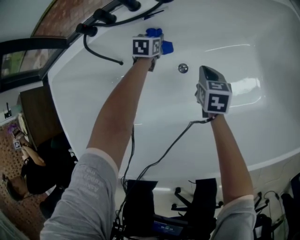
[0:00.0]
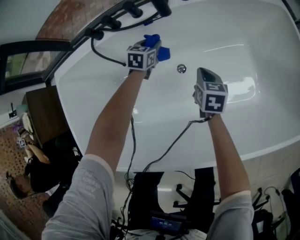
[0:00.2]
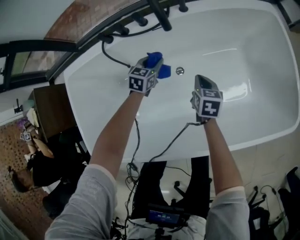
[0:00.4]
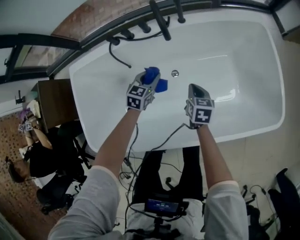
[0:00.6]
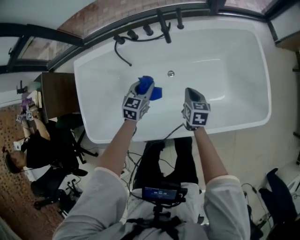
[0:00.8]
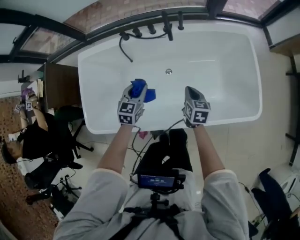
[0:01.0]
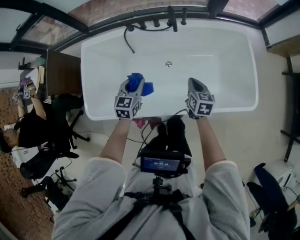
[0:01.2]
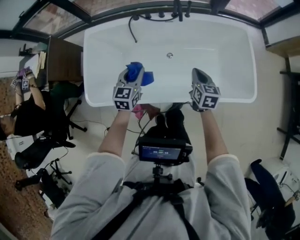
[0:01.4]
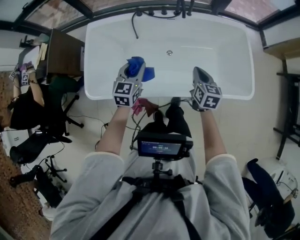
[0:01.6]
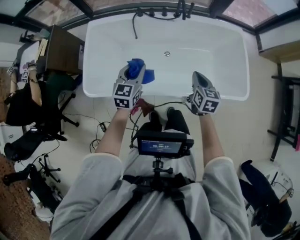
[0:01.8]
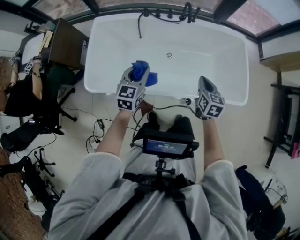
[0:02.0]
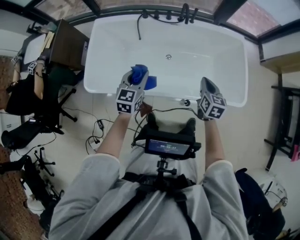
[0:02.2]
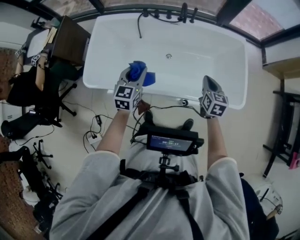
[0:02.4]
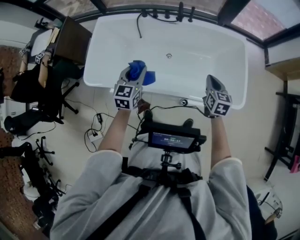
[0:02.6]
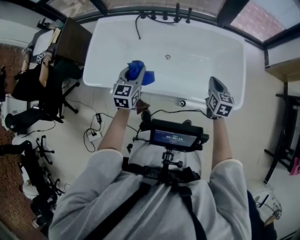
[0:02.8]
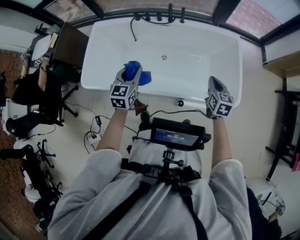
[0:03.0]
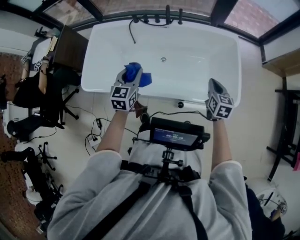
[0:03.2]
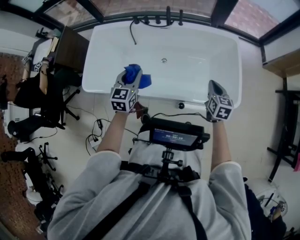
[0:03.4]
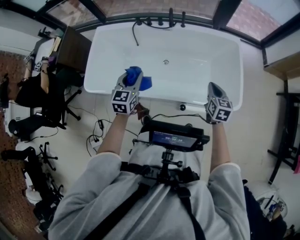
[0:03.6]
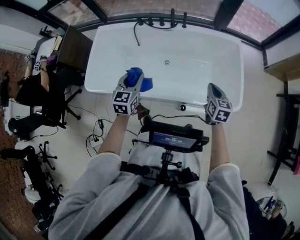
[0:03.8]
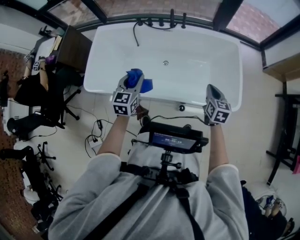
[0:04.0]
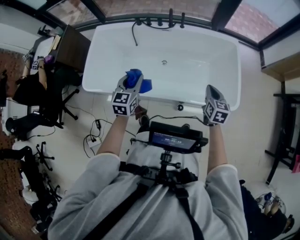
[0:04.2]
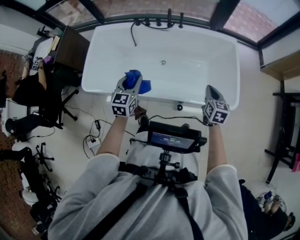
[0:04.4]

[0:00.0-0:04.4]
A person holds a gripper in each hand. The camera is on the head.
0:00.0 to 0:01.4: Both grippers move upward and backward, about 60 cm. The left gripper swivels approximately 30 degrees.
0:01.4 to 0:03.0: The left gripper travels to the right, backward and upward by some 20 cm. The right gripper travels to the right by approximately 20 cm.
0:03.0 to 0:04.4: The grippers move only a little.

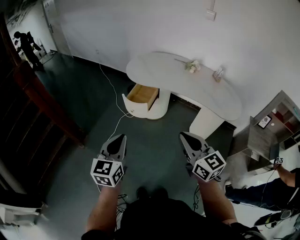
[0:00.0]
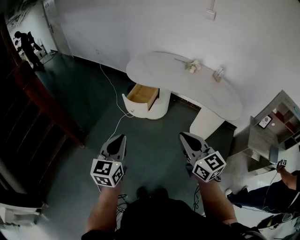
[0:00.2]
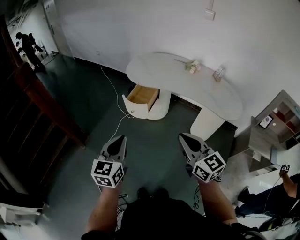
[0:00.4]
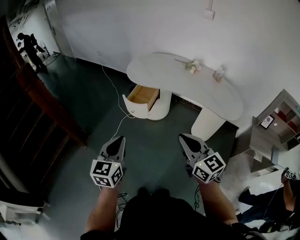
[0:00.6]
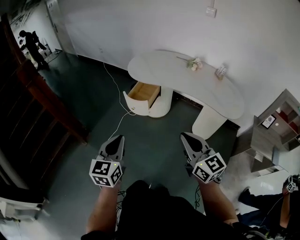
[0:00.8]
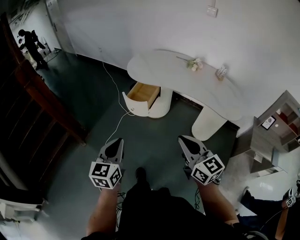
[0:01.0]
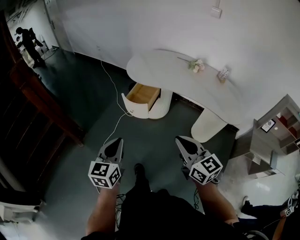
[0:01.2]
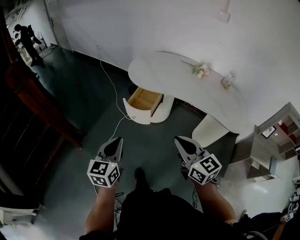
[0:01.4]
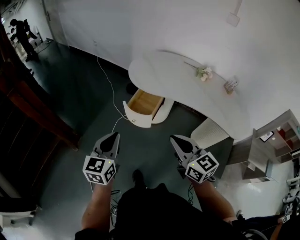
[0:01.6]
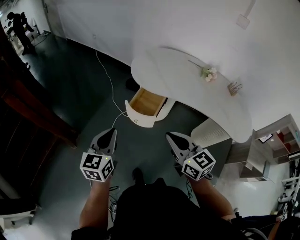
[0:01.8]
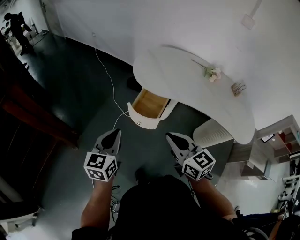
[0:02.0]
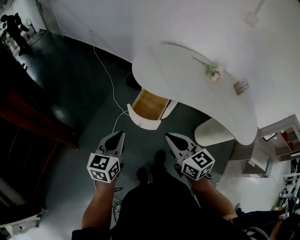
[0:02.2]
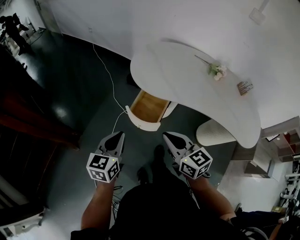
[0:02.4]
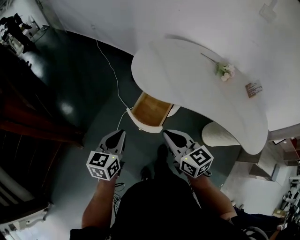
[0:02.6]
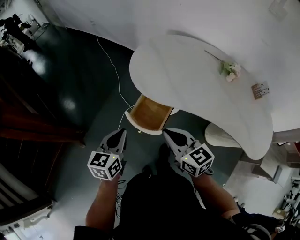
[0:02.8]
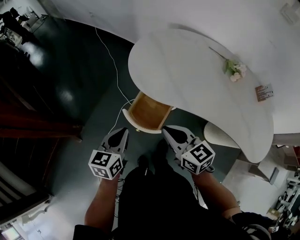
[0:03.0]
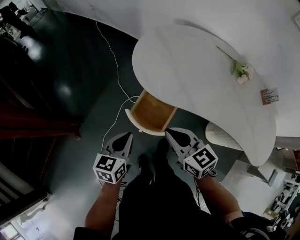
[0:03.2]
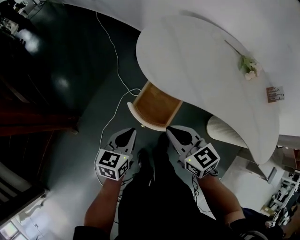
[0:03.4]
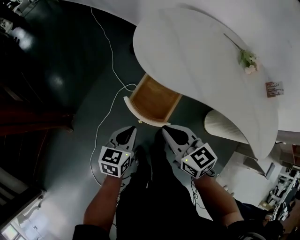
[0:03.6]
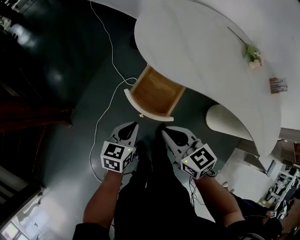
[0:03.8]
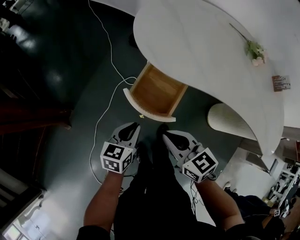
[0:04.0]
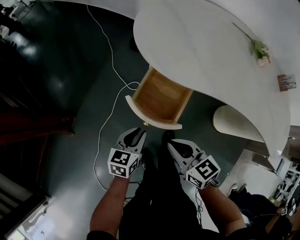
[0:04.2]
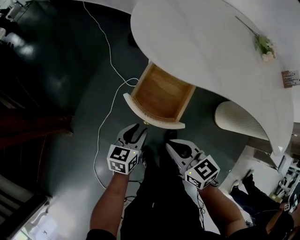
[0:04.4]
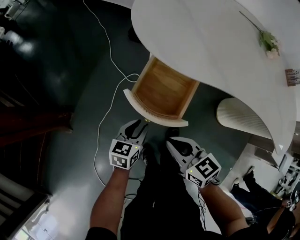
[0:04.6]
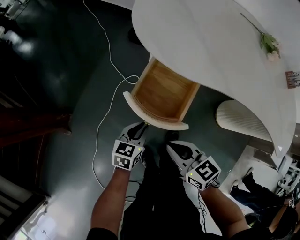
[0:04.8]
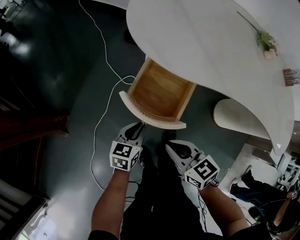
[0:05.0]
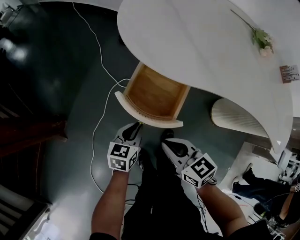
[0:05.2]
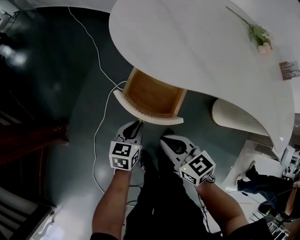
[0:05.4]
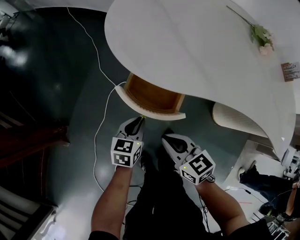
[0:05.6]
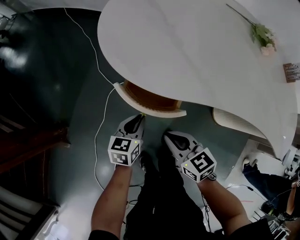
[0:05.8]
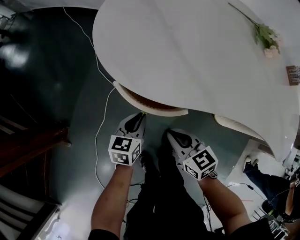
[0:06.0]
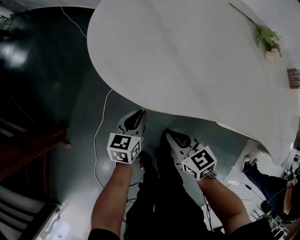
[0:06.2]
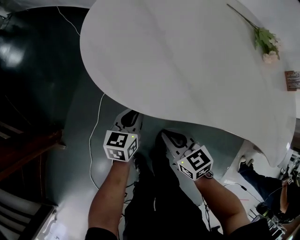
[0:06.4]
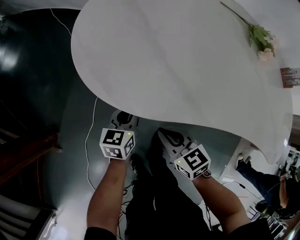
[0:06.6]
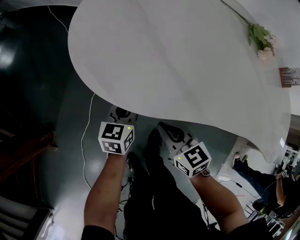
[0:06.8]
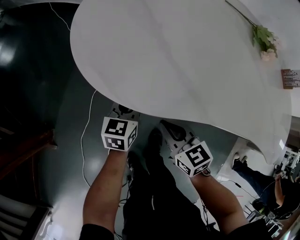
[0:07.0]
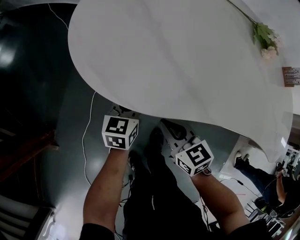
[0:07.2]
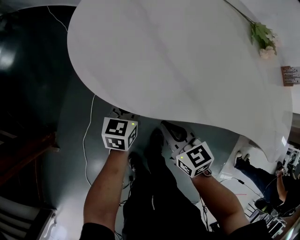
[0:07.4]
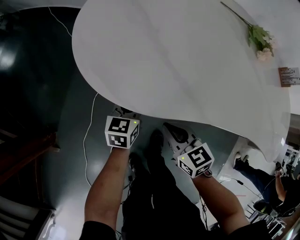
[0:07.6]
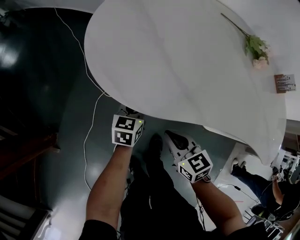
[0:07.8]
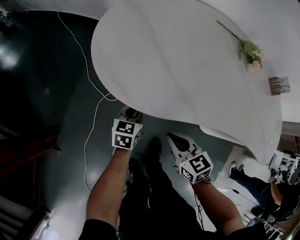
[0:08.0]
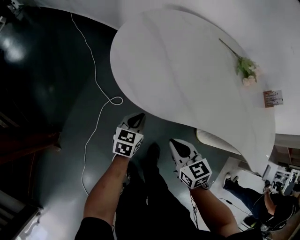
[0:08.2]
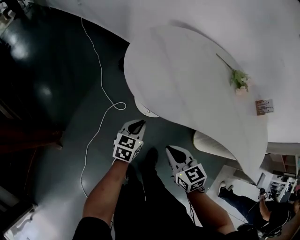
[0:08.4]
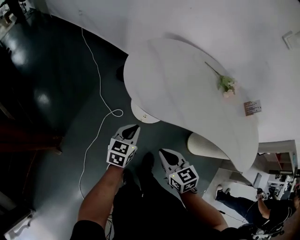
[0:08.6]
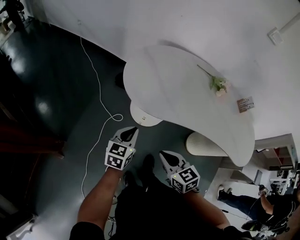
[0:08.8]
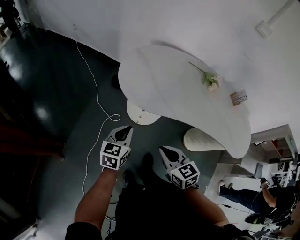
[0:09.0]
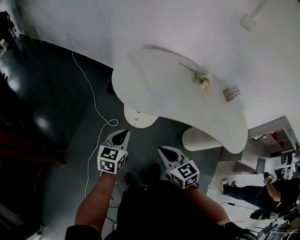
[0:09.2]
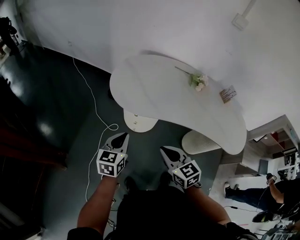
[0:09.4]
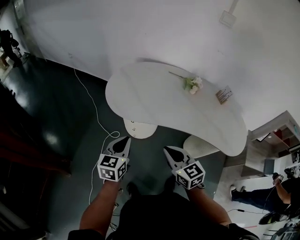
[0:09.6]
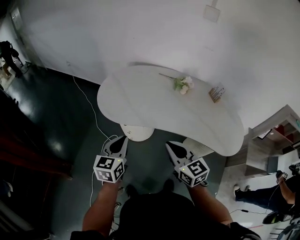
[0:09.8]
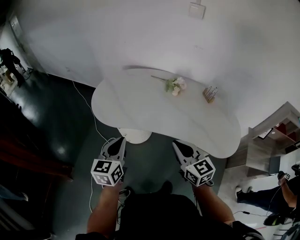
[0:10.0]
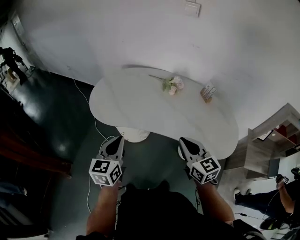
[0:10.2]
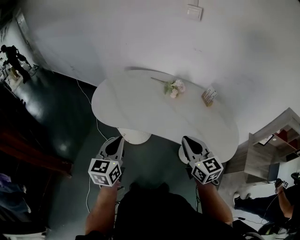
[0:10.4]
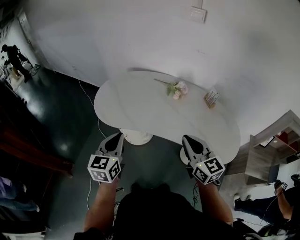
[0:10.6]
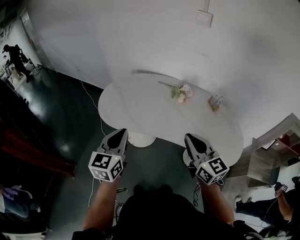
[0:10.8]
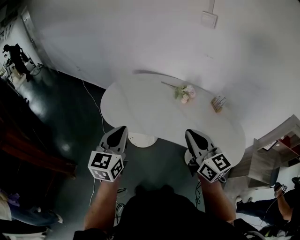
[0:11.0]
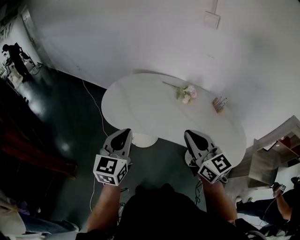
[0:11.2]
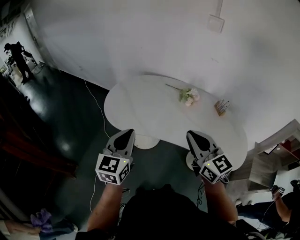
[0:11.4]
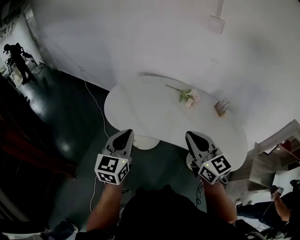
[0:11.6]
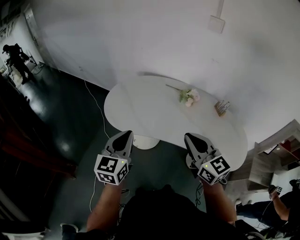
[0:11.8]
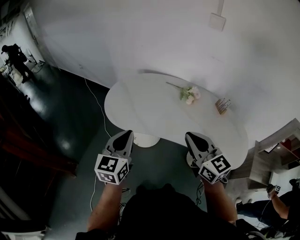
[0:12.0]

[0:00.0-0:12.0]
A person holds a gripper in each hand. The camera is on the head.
0:00.0 to 0:01.6: Both grippers travel together forward, some 20 cm.
0:01.6 to 0:03.0: Both grippers travel together forward and downward, approximately 30 cm.
0:03.0 to 0:04.4: Both grippers move downward, roughly 25 cm. The left gripper opens its fingers.
0:04.4 to 0:06.0: The right gripper shifts roughly 15 cm forward, to the right and downward. Meanwhile the left gripper travels forward and to the right by roughly 15 cm, and closes its fingers.
0:06.0 to 0:07.6: The left gripper goes approximately 10 cm forward and to the right. Meanwhile the right gripper moves forward, some 5 cm.
0:07.6 to 0:09.0: The grippers both shift upward and backward by approximately 30 cm.
0:09.0 to 0:10.4: The two grippers go about 35 cm to the right and upward. The right gripper rotates roughly 30 degrees.
0:10.4 to 0:12.0: The right gripper goes about 10 cm to the left and upward. The left gripper goes approximately 5 cm to the left.

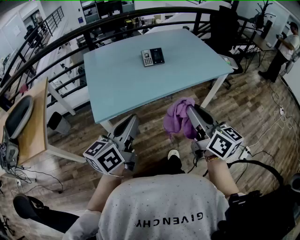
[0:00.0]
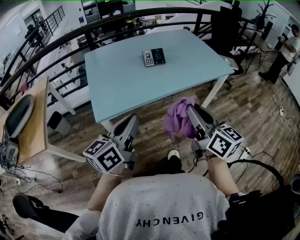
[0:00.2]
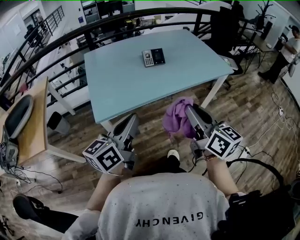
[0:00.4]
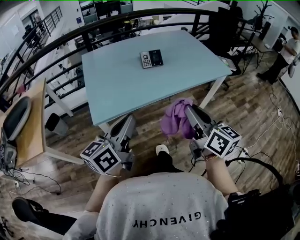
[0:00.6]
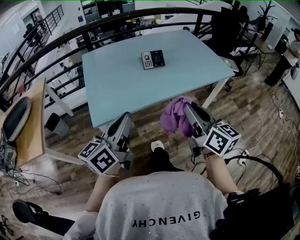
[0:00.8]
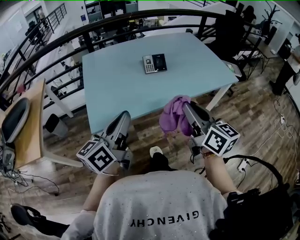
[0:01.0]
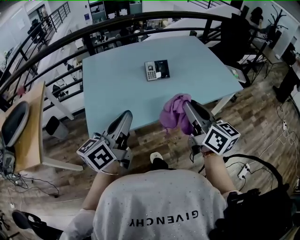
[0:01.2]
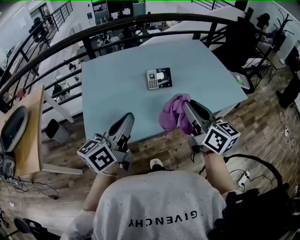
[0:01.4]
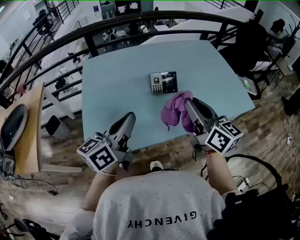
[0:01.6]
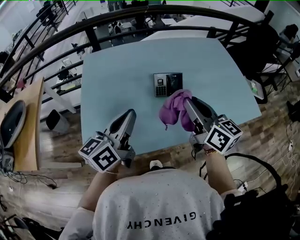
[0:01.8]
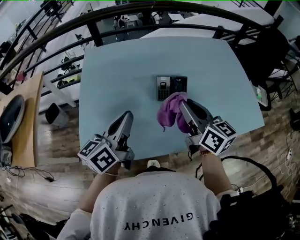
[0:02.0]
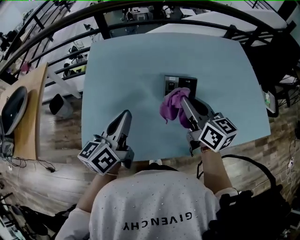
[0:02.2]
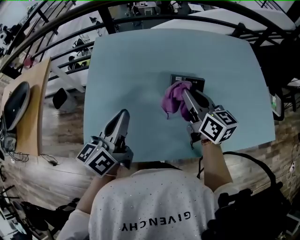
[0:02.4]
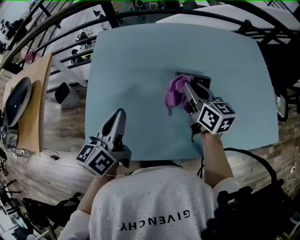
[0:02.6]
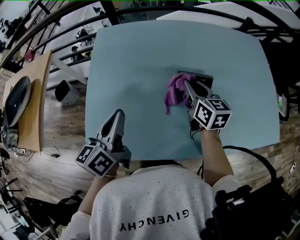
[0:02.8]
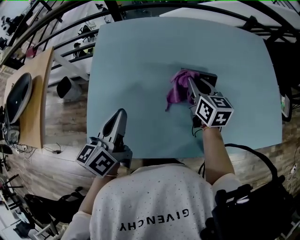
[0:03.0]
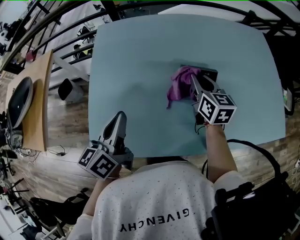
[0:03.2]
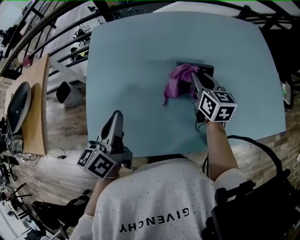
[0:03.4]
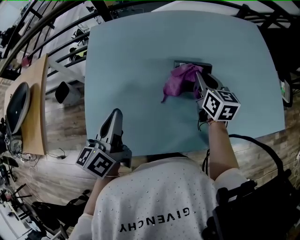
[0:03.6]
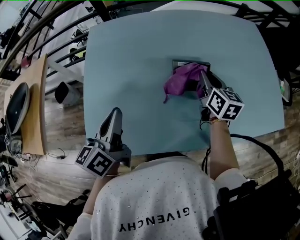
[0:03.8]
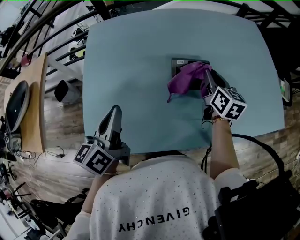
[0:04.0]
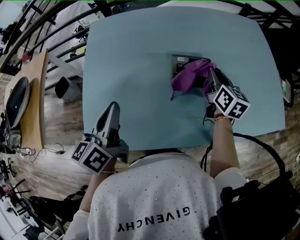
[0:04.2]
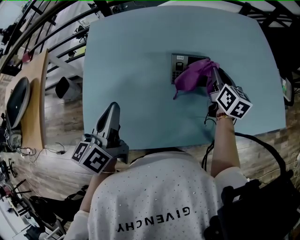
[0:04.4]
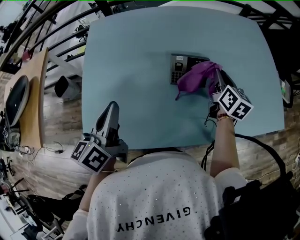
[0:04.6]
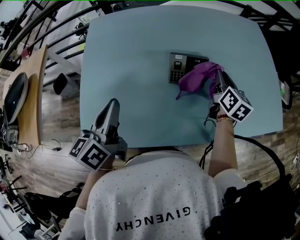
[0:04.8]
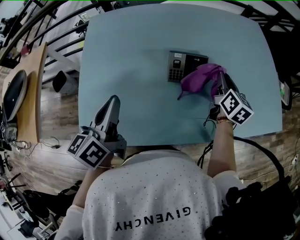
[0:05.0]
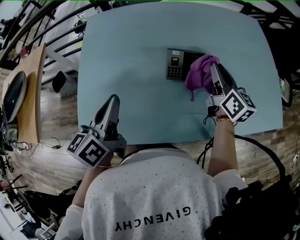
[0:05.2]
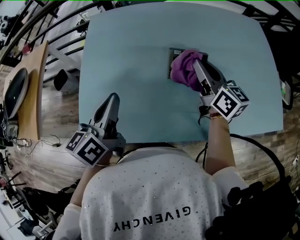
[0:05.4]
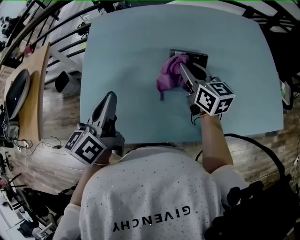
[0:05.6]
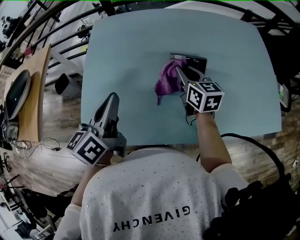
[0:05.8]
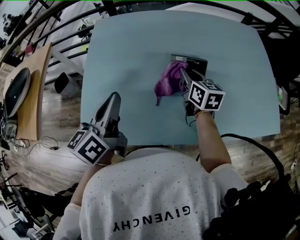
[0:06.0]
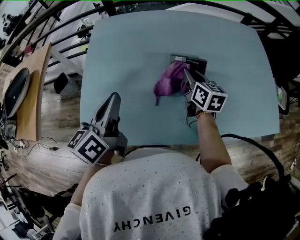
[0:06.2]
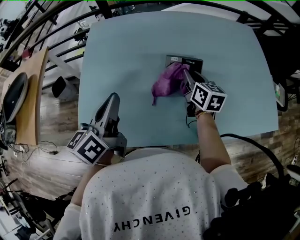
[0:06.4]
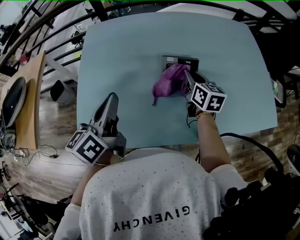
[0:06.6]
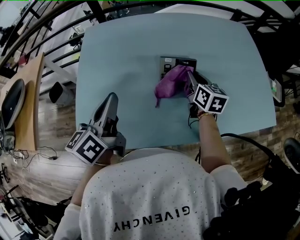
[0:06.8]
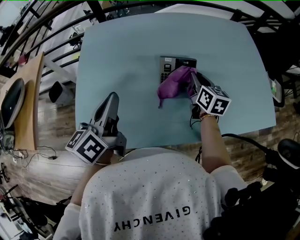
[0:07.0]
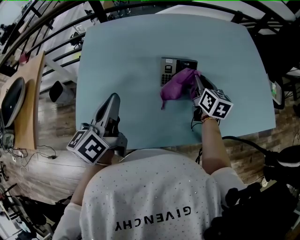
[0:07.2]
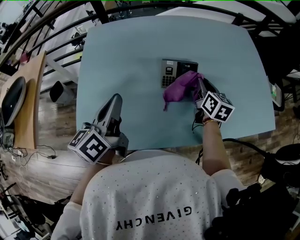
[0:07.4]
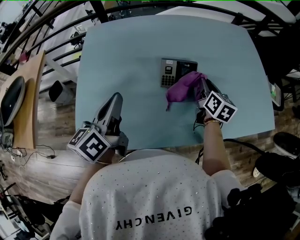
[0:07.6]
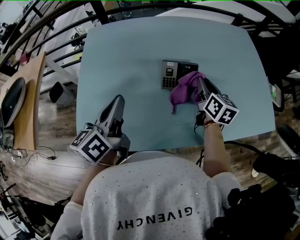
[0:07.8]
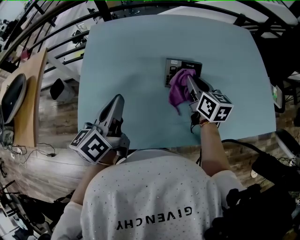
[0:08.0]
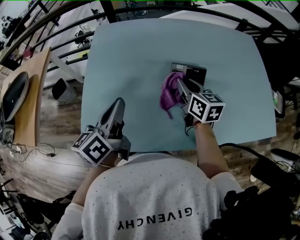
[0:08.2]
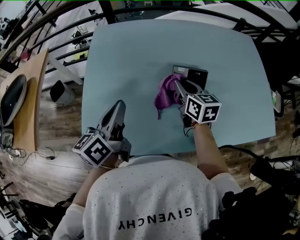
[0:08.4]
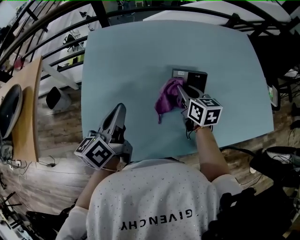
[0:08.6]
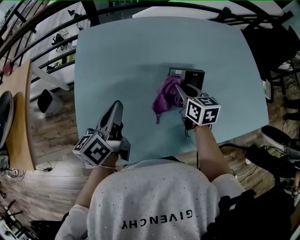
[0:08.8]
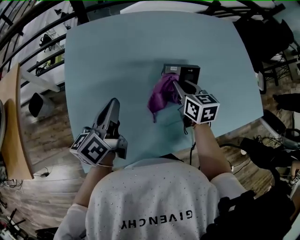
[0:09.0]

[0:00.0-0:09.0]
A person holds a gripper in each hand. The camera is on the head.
0:00.0 to 0:01.6: The grippers both shift forward by about 30 cm.
0:01.6 to 0:03.0: The left gripper is displaced forward, downward and to the left by some 20 cm, and changes its angle by about 30 degrees; the right gripper shifts approximately 35 cm forward and downward, and rotates approximately 20 degrees.
0:03.0 to 0:04.4: The right gripper moves to the right, about 15 cm.
0:04.4 to 0:06.0: The right gripper shifts some 10 cm to the left.
0:06.0 to 0:07.6: The right gripper is displaced to the right by some 15 cm.
0:07.6 to 0:09.0: The right gripper shifts some 15 cm to the left. Meanwhile the left gripper shifts roughly 10 cm forward, to the left and downward.
